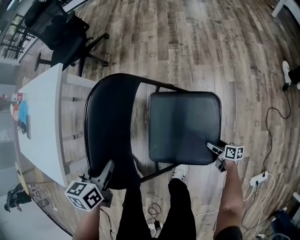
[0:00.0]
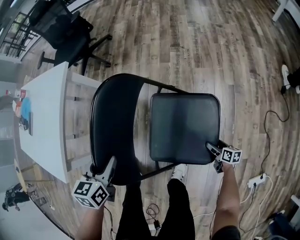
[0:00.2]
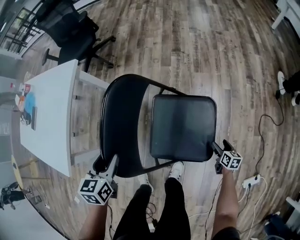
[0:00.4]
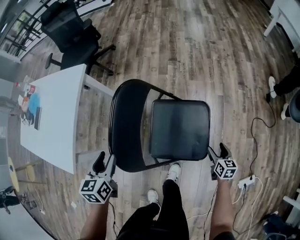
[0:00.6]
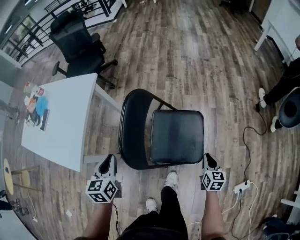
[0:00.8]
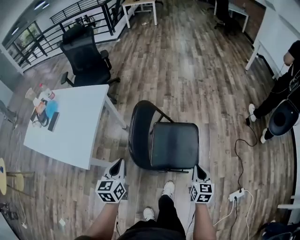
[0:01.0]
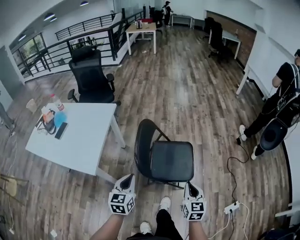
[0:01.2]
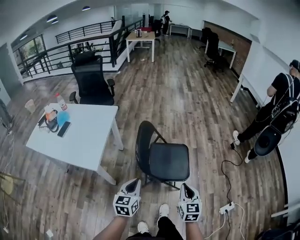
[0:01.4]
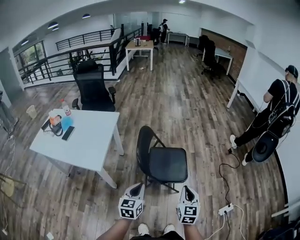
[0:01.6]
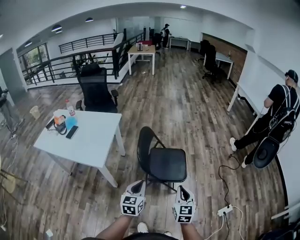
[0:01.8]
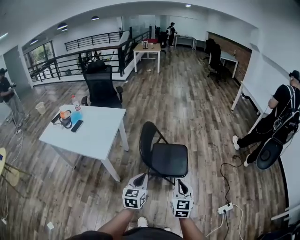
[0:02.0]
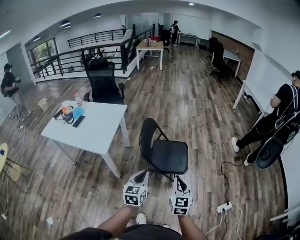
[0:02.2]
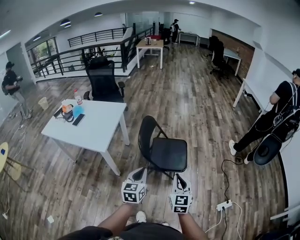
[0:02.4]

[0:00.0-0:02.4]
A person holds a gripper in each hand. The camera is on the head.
0:00.0 to 0:01.2: The left gripper is displaced upward and backward by about 35 cm, swivels some 30 degrees, and closes its fingers, while the right gripper goes approximately 60 cm upward and backward, changes its angle by about 60 degrees, and closes its fingers.
0:01.2 to 0:02.4: The left gripper heads backward, to the right and upward, covering approximately 25 cm. The right gripper goes about 25 cm backward and upward.

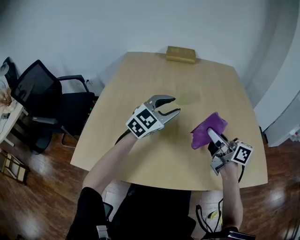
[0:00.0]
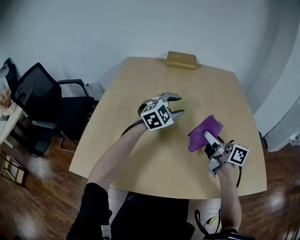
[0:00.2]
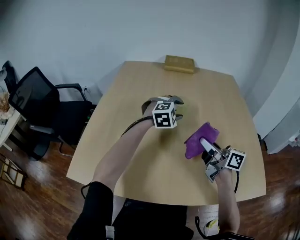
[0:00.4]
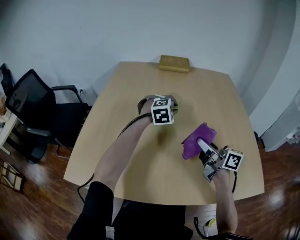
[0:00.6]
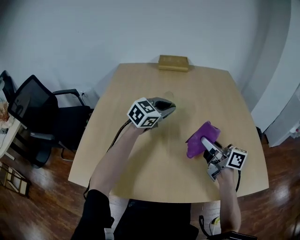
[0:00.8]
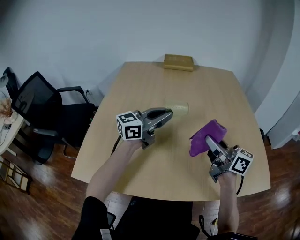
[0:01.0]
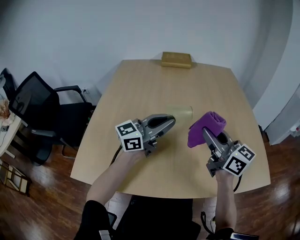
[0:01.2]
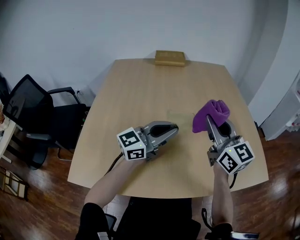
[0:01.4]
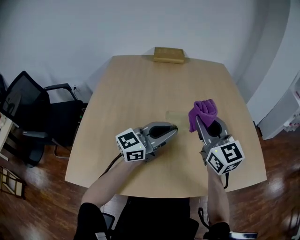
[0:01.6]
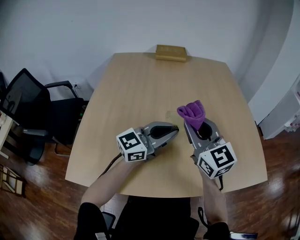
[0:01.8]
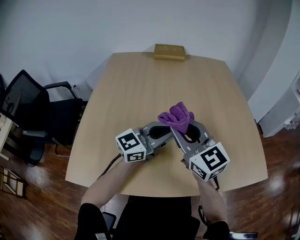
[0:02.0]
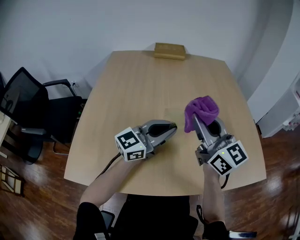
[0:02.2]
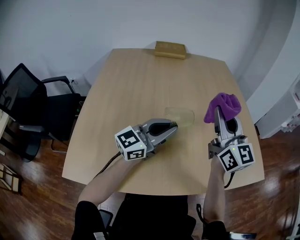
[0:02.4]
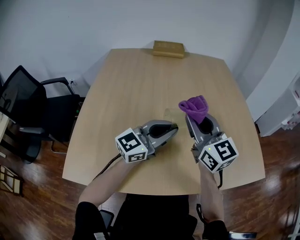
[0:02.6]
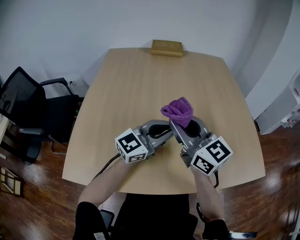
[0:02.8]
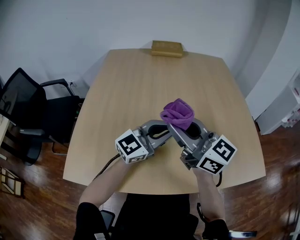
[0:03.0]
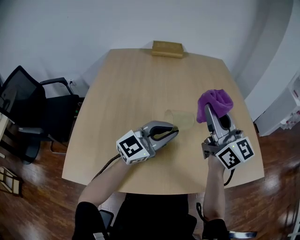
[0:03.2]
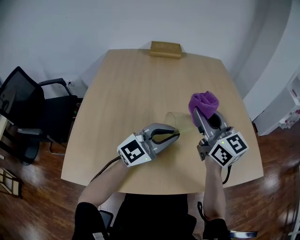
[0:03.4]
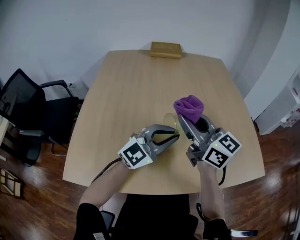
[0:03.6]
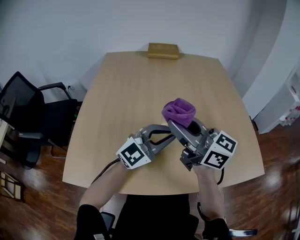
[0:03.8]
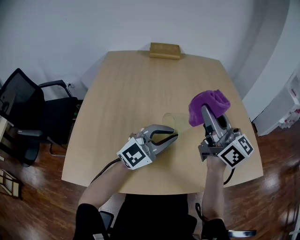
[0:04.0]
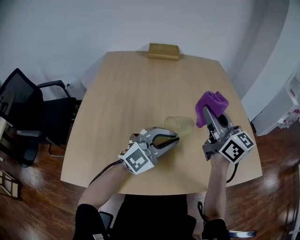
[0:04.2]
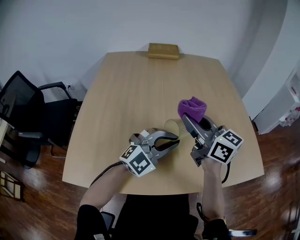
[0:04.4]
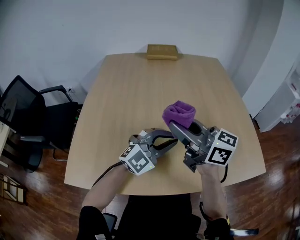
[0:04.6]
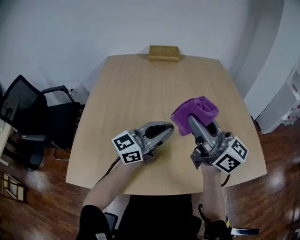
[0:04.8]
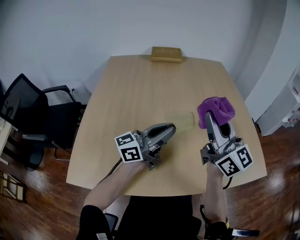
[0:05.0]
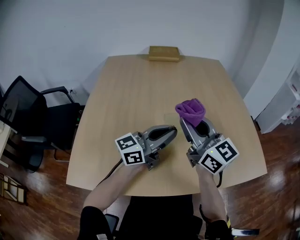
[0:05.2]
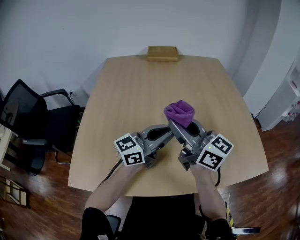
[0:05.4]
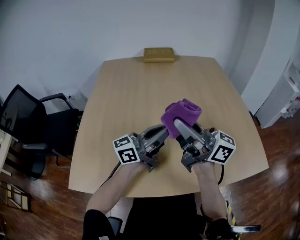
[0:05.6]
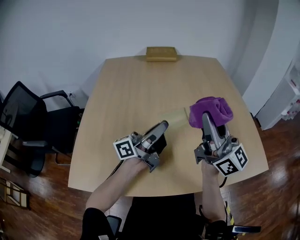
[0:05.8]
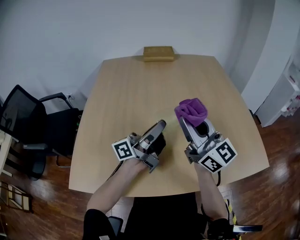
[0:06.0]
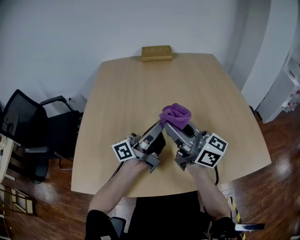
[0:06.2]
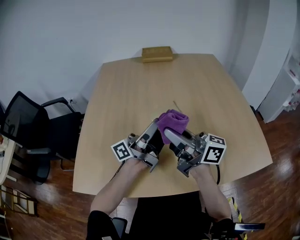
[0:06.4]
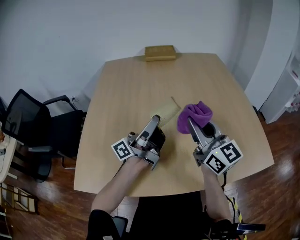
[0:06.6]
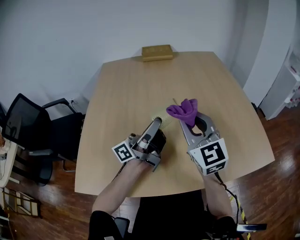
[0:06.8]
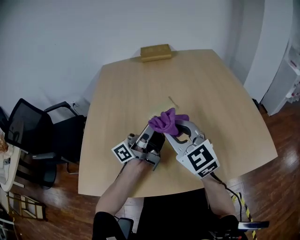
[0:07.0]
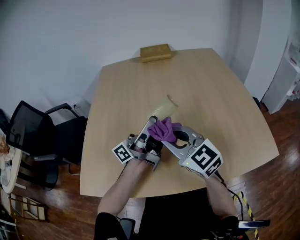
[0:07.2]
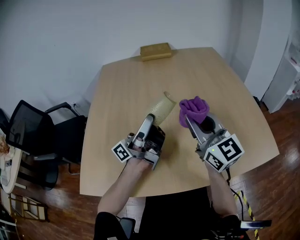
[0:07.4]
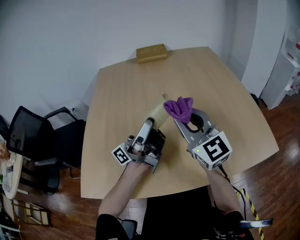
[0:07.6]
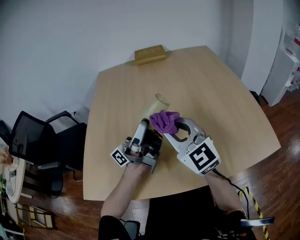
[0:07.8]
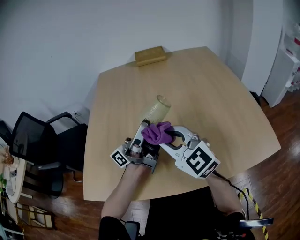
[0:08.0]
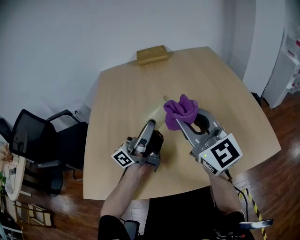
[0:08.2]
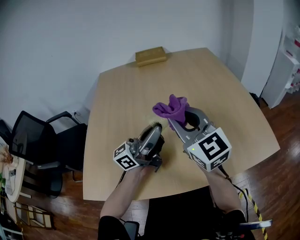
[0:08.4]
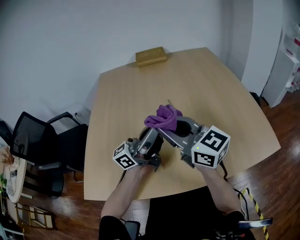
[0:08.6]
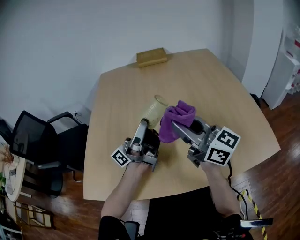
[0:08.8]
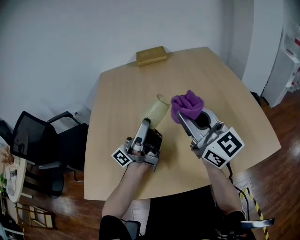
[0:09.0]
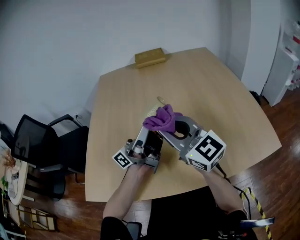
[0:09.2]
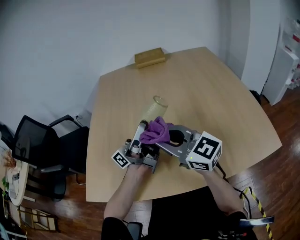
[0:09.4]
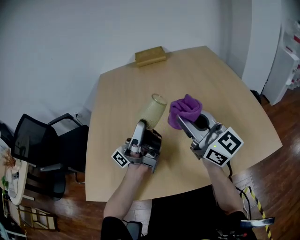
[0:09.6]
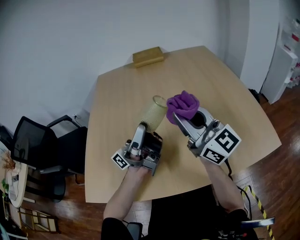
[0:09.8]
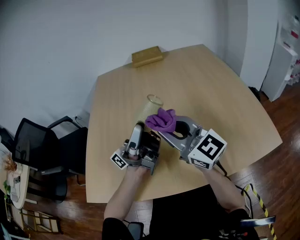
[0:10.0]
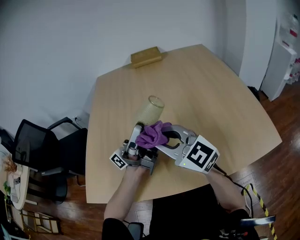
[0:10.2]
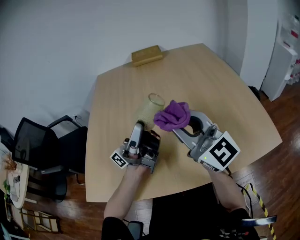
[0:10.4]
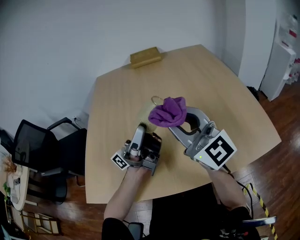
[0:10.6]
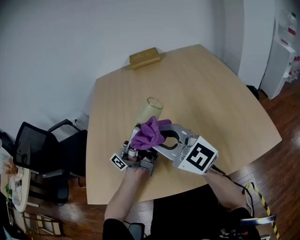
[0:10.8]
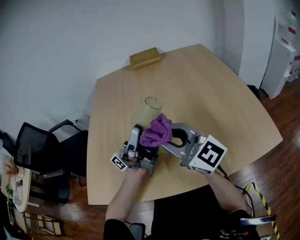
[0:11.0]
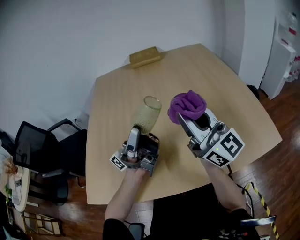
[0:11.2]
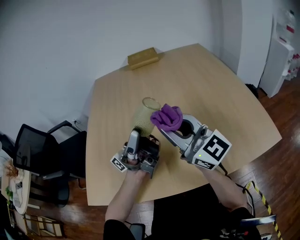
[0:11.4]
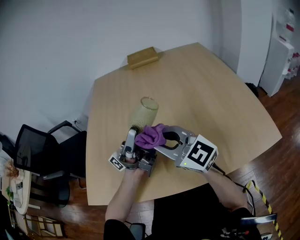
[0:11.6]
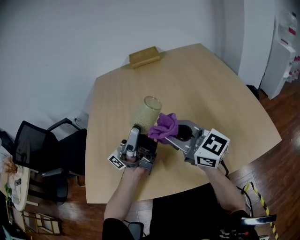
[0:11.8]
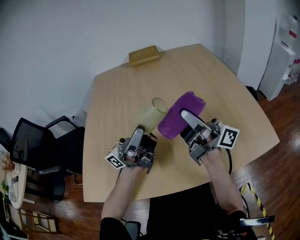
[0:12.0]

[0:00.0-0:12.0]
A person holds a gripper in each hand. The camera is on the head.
0:00.0 to 0:01.6: The left gripper moves approximately 10 cm downward and comes back, changes its angle by approximately 40 degrees, and closes up, while the right gripper travels upward by roughly 5 cm, and rolls counterclockwise, seen from behind, by some 50 degrees.
0:01.6 to 0:03.0: The right gripper goes left and right, approximately 15 cm each way, reversing 2 times, and changes its angle by approximately 30 degrees.
0:03.0 to 0:04.4: The right gripper moves left and right over about 10 cm, changing direction 3 times; the left gripper moves approximately 5 cm, and swivels roughly 40 degrees.
0:04.4 to 0:06.0: The right gripper goes left and right, approximately 10 cm each way, reversing 4 times, and rotates roughly 20 degrees. The left gripper shifts some 10 cm to the left and upward, and rotates around the line of its fingers by about 90 degrees, counterclockwise from behind.
0:06.0 to 0:07.6: The right gripper moves left and right over roughly 10 cm, changing direction 3 times, and swivels some 20 degrees; the left gripper ends up roughly 5 cm from where it was.
0:07.6 to 0:09.0: The right gripper moves left and right over approximately 10 cm, changing direction 3 times.
0:09.0 to 0:10.4: The right gripper goes left and right, approximately 10 cm each way, reversing 3 times.
0:10.4 to 0:12.0: The right gripper goes left and right, roughly 10 cm each way, reversing 3 times, and rotates around the line of its fingers by about 60 degrees, clockwise from behind.

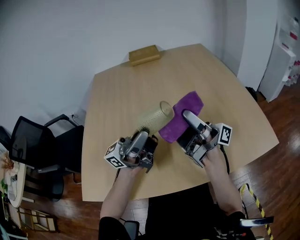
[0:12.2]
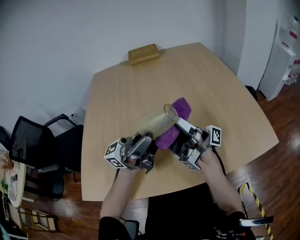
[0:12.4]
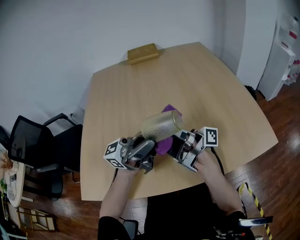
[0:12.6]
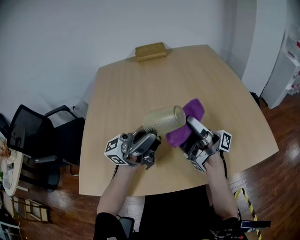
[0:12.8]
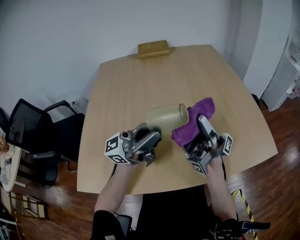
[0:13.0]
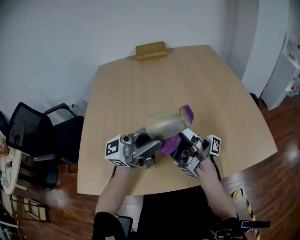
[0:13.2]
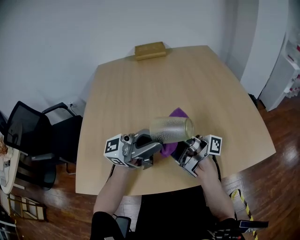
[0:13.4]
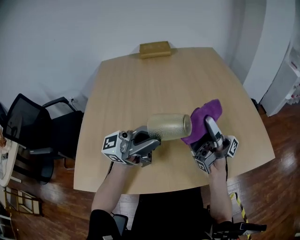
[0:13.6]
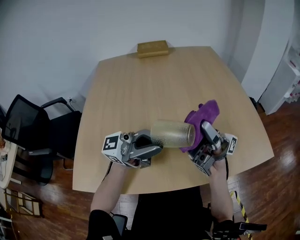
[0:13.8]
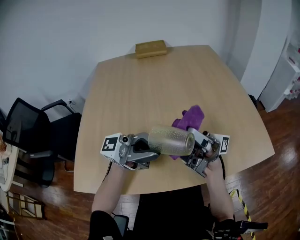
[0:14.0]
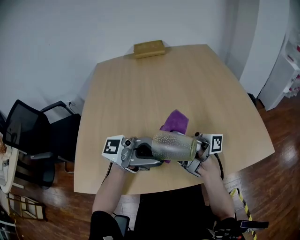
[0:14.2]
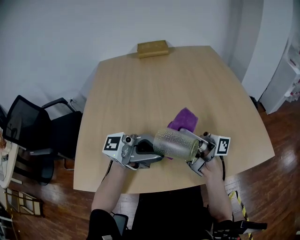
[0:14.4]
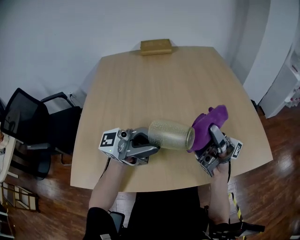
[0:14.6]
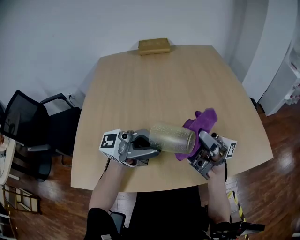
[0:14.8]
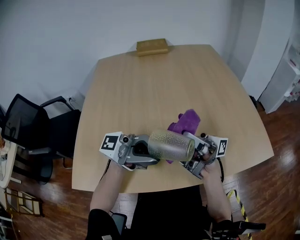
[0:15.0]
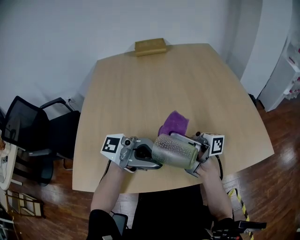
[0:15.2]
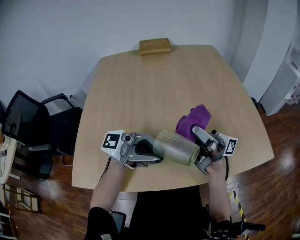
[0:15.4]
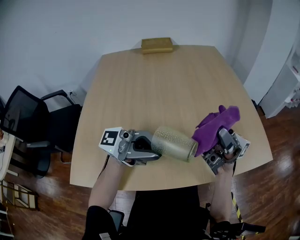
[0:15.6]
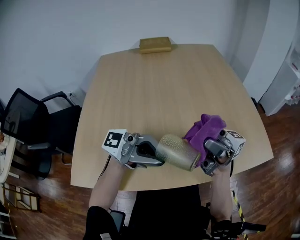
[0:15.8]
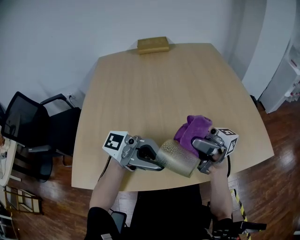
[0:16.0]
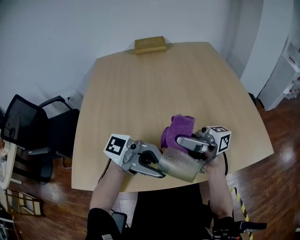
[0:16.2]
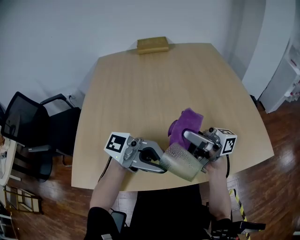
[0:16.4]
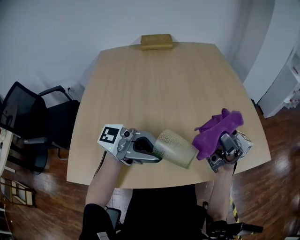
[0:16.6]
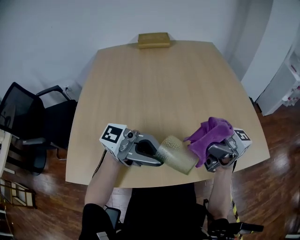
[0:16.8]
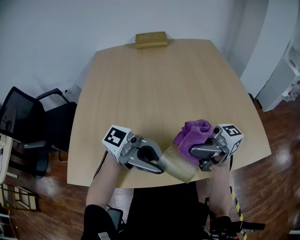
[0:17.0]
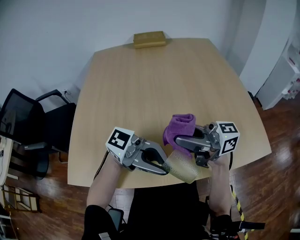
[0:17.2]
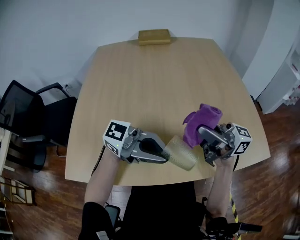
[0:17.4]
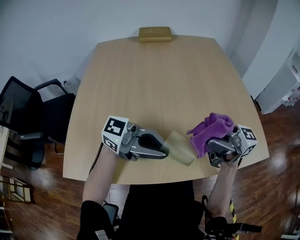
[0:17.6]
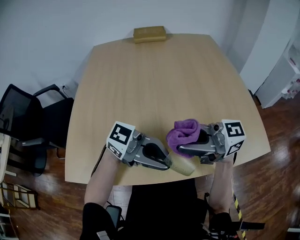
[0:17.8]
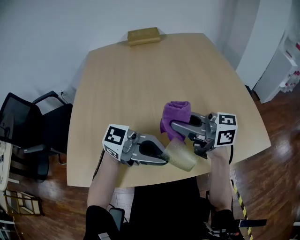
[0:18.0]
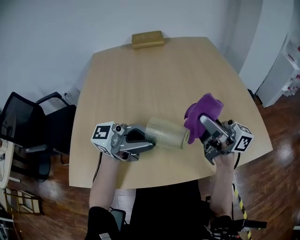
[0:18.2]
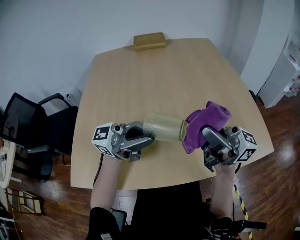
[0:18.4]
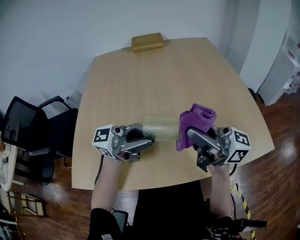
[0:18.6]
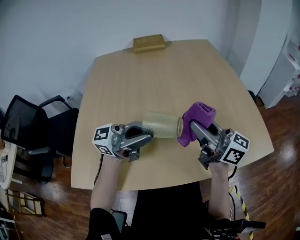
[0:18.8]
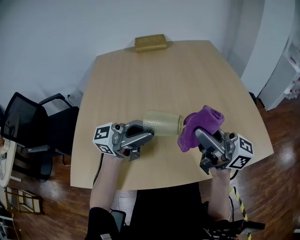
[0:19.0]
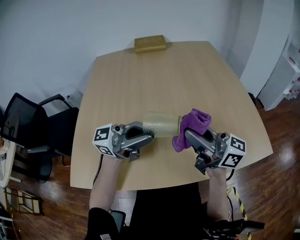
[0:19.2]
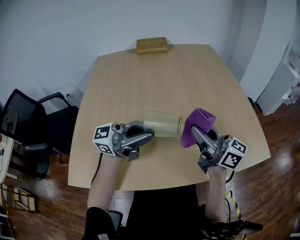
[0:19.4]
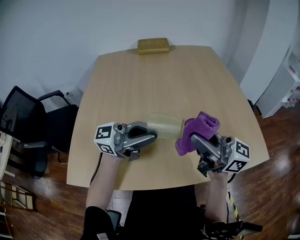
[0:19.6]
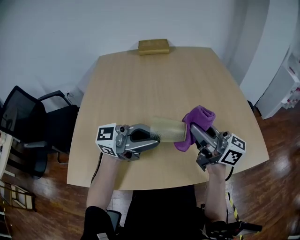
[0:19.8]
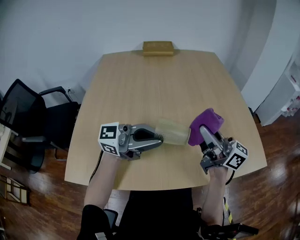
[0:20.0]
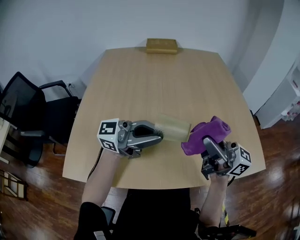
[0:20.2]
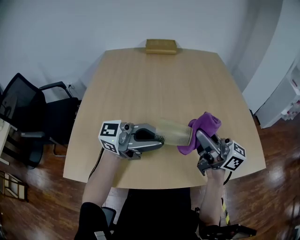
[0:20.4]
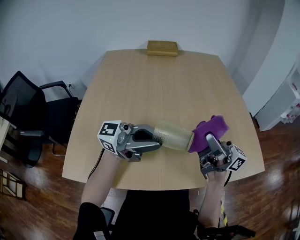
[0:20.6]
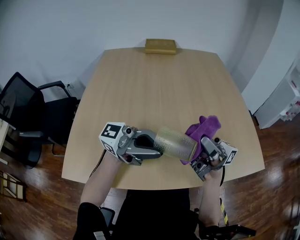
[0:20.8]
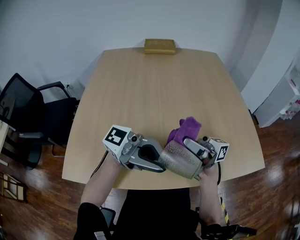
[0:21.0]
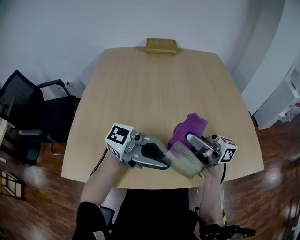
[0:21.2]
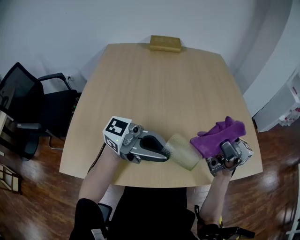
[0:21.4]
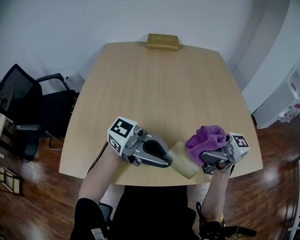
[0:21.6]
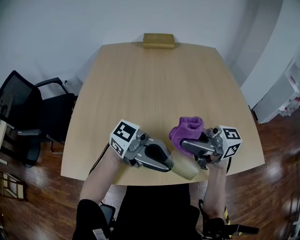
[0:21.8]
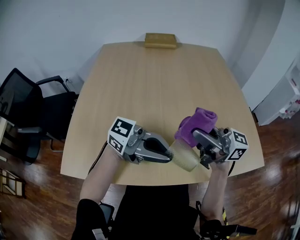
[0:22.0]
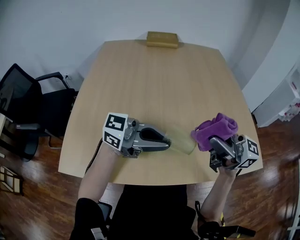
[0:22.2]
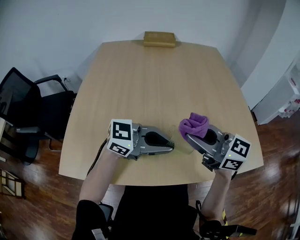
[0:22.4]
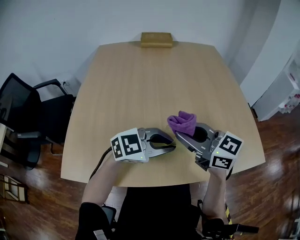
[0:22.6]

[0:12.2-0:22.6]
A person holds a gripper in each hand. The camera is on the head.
0:12.2 to 0:13.6: The right gripper moves up and down over about 5 cm, changing direction 3 times.
0:13.6 to 0:15.2: The left gripper ends up roughly 5 cm from where it was, and changes its angle by roughly 20 degrees. The right gripper shifts by roughly 10 cm, and turns by approximately 30 degrees.
0:15.2 to 0:16.6: The right gripper moves up and down over some 5 cm, changing direction 2 times, and changes its angle by approximately 30 degrees.
0:16.6 to 0:18.2: The right gripper swivels about 30 degrees.
0:18.2 to 0:19.6: The right gripper moves up and down over approximately 5 cm, changing direction 2 times.
0:19.6 to 0:21.2: The right gripper turns by approximately 30 degrees. Meanwhile the left gripper moves about 10 cm, and swivels some 20 degrees.
0:21.2 to 0:22.6: The right gripper tilts its fingers about 40 degrees downward. The left gripper is displaced downward by approximately 10 cm, and points its fingers approximately 40 degrees further downward.
